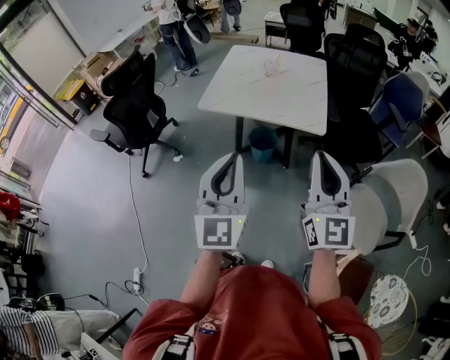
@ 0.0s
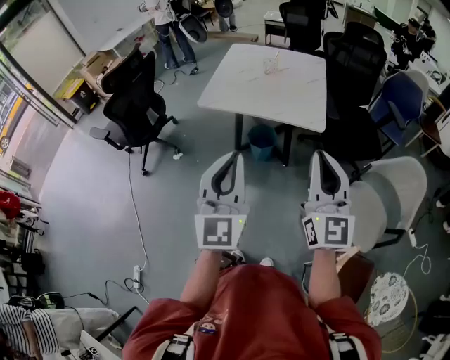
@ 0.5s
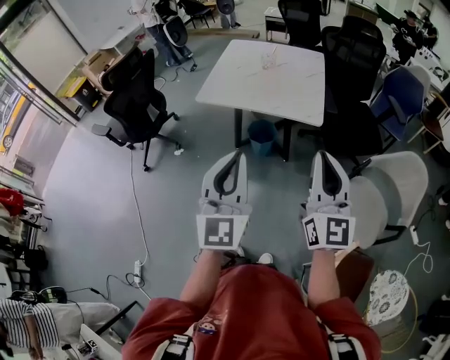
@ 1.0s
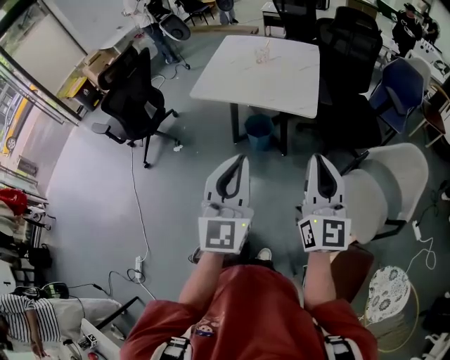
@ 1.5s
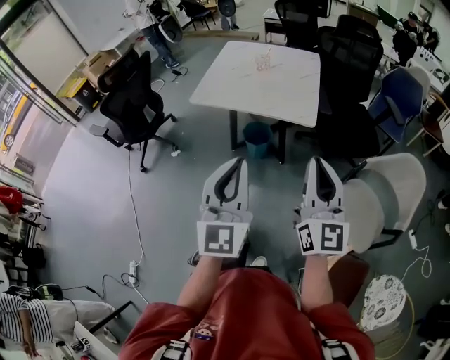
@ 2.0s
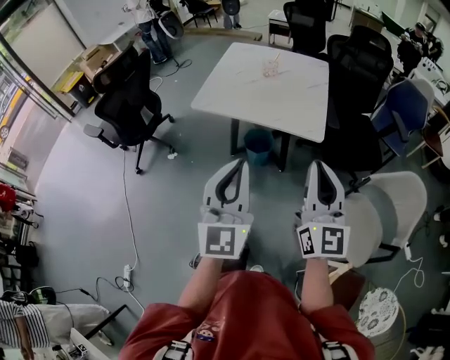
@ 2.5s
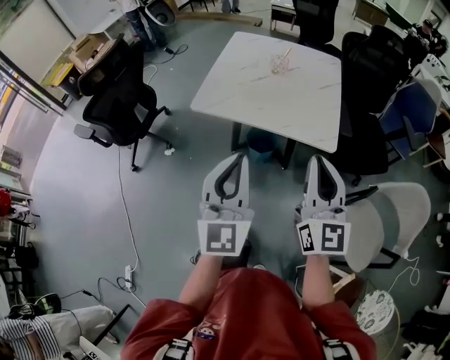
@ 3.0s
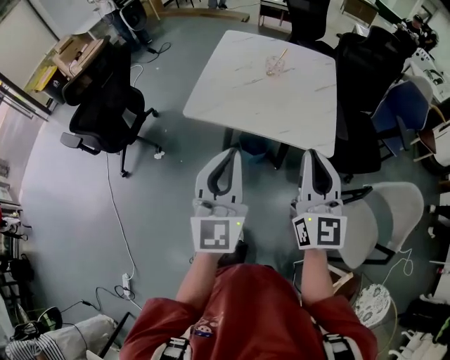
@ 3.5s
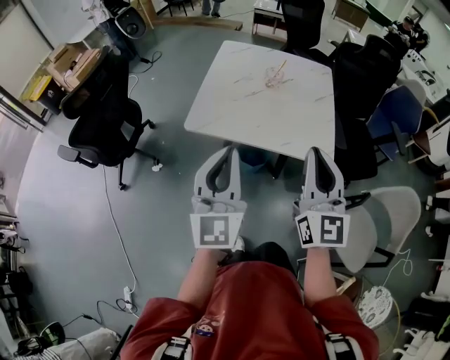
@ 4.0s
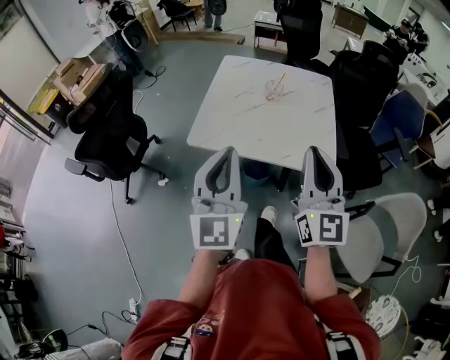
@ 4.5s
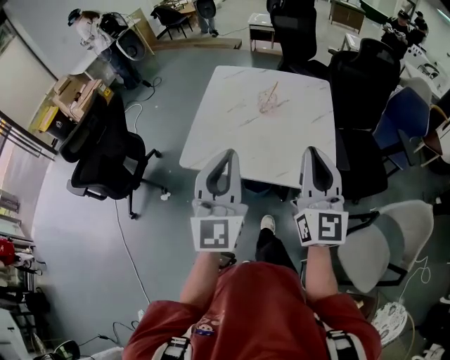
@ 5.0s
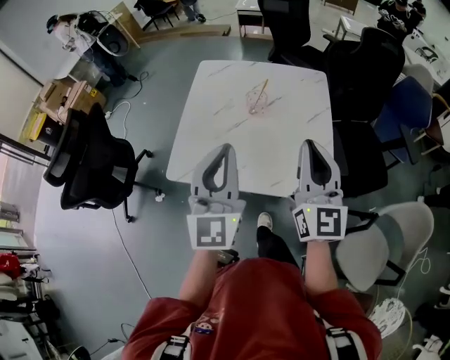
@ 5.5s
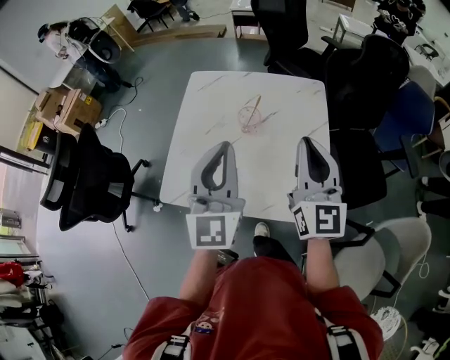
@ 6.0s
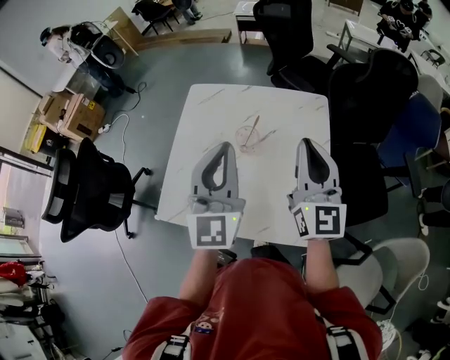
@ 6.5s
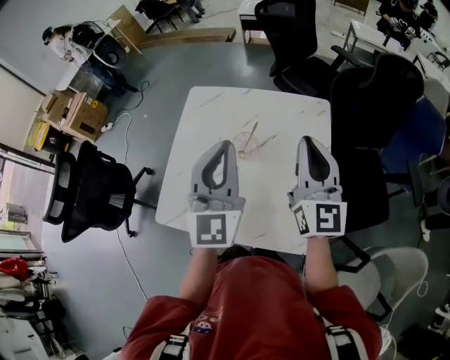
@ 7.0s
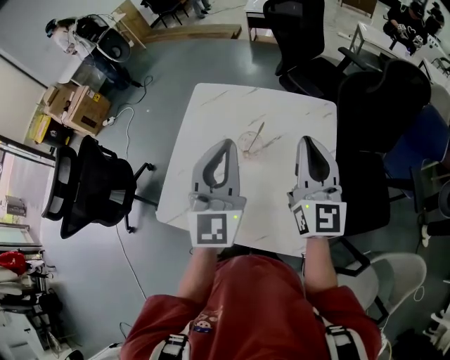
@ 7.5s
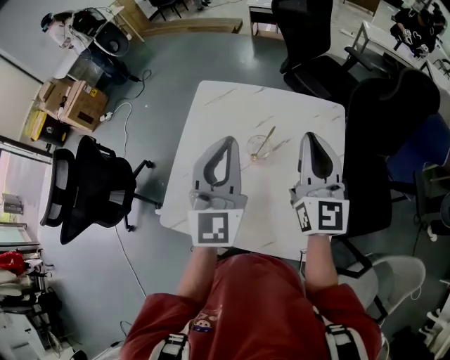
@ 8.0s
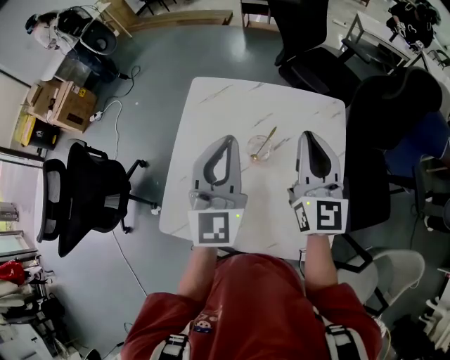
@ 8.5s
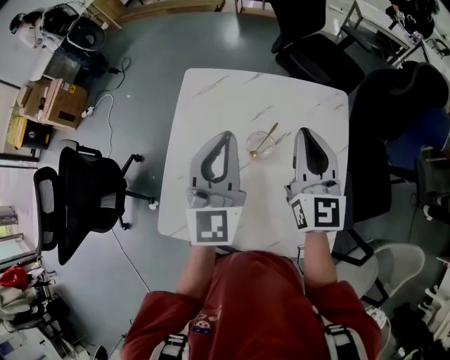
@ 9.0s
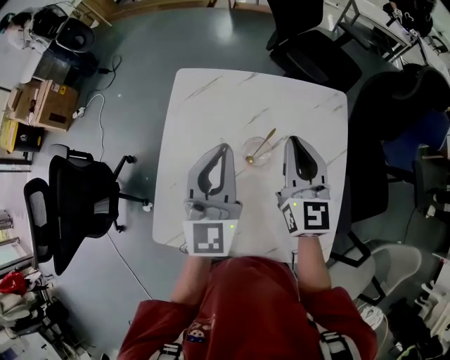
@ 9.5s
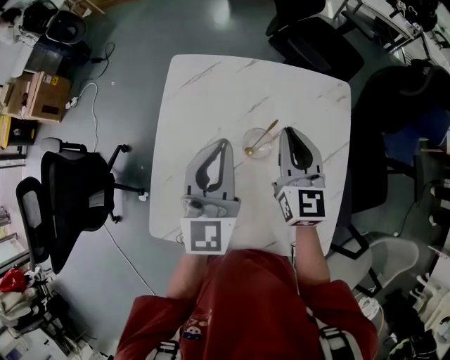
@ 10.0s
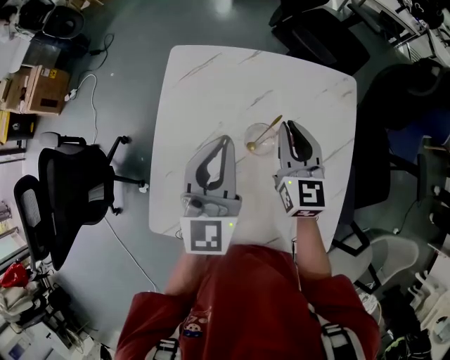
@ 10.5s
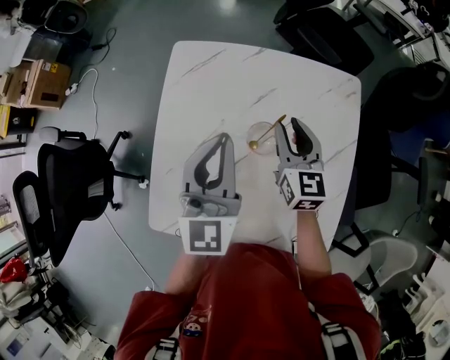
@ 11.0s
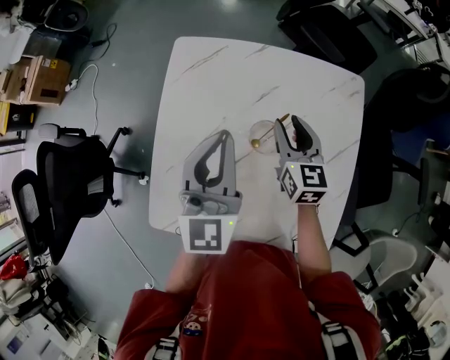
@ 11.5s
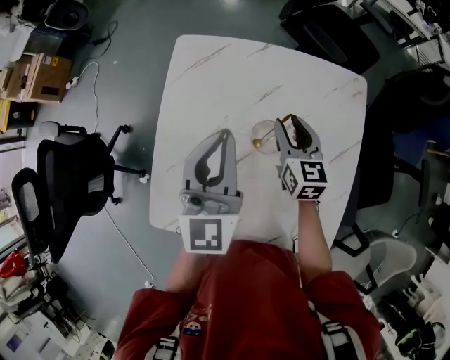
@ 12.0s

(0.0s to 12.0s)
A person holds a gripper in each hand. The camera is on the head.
0.0s - 2.0s: The grippers both shift to the right by about 10 cm.
2.0s - 4.0s: Both grippers move forward and to the left, about 35 cm.
4.0s - 6.0s: Both grippers travel together forward, approximately 30 cm.
6.0s - 8.0s: The two grippers go about 15 cm forward.
8.0s - 10.0s: The grippers both shift downward and forward by roughly 15 cm.
10.0s - 12.0s: The right gripper shifts approximately 10 cm downward, and opens its fingers.

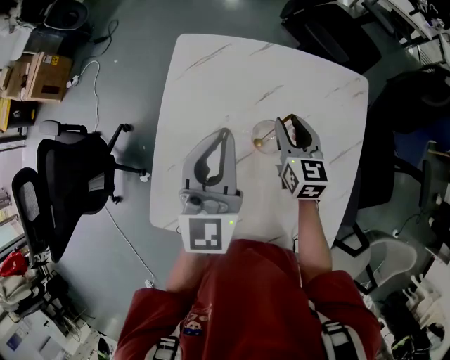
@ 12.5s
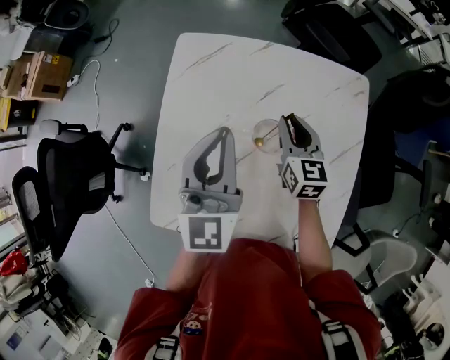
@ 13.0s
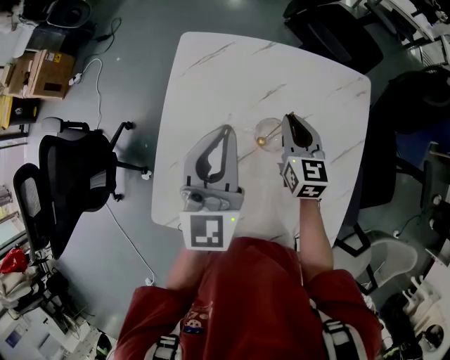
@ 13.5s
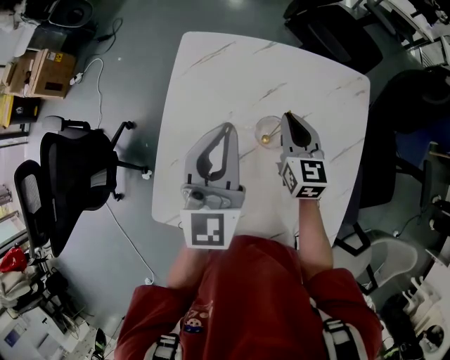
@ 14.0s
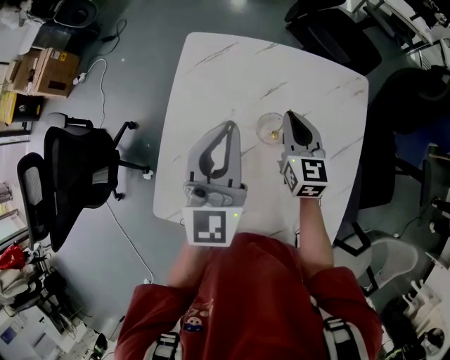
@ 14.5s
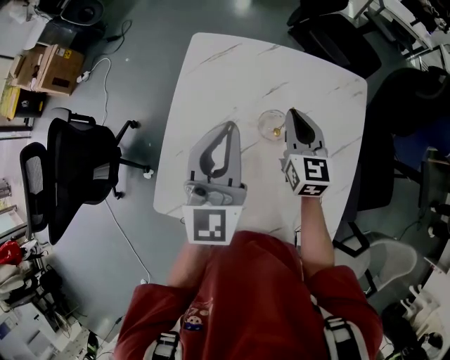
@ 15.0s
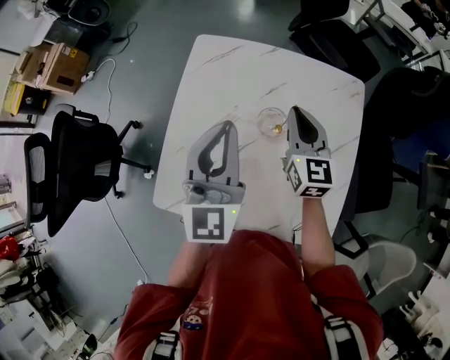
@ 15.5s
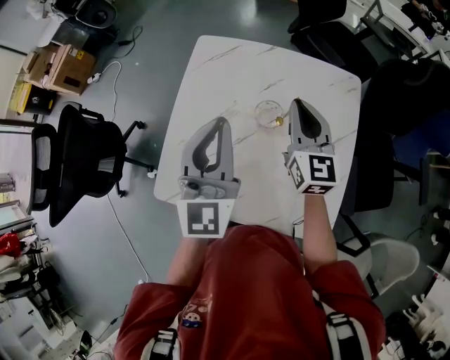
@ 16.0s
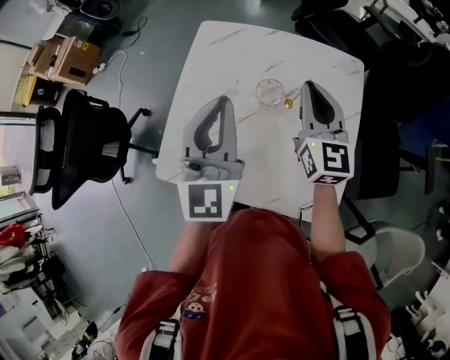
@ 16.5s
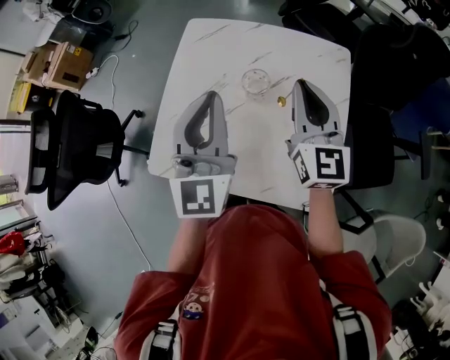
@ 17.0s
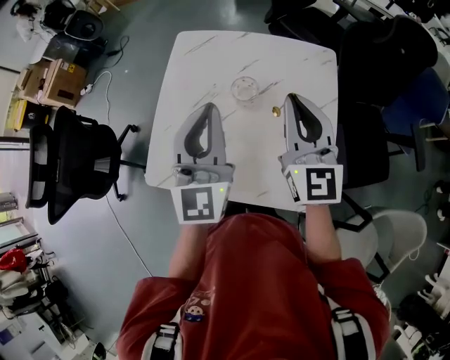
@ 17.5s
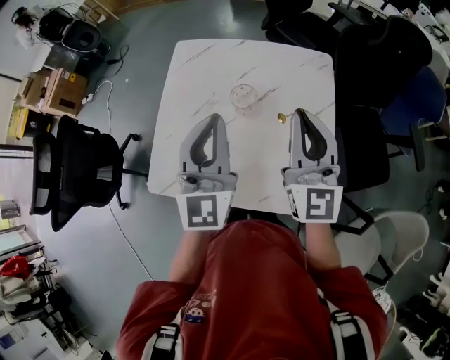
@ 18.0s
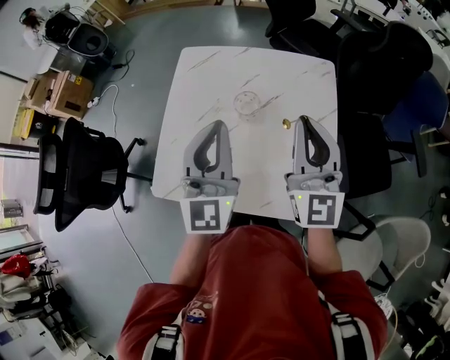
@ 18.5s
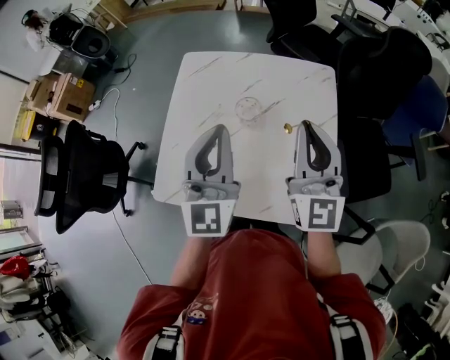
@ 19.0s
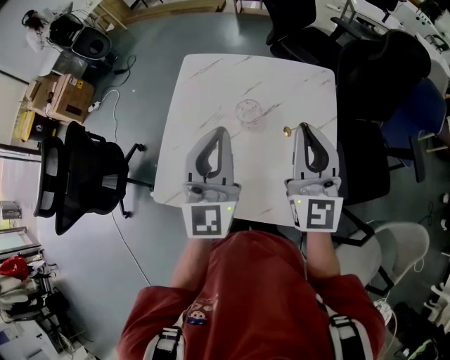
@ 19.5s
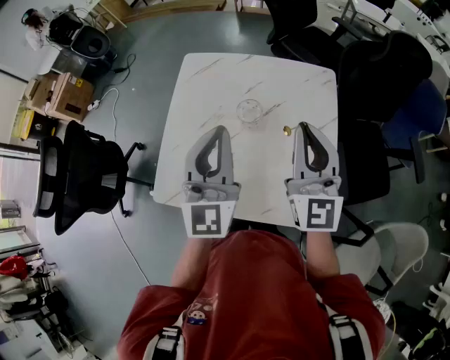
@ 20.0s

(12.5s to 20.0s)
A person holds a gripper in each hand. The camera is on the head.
12.5s - 14.5s: The right gripper closes.
14.5s - 16.5s: The left gripper travels backward and upward by approximately 10 cm; the right gripper goes approximately 15 cm upward and backward.
16.5s - 18.0s: The left gripper moves some 5 cm; the right gripper shifts roughly 15 cm backward and upward.
18.0s - 20.0s: The two grippers keep their place.

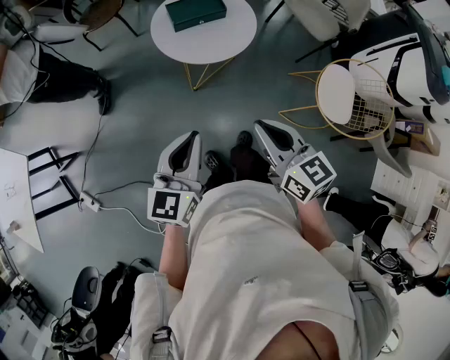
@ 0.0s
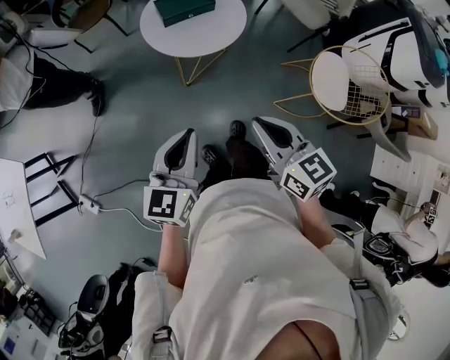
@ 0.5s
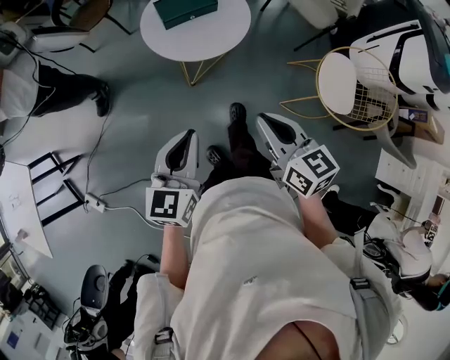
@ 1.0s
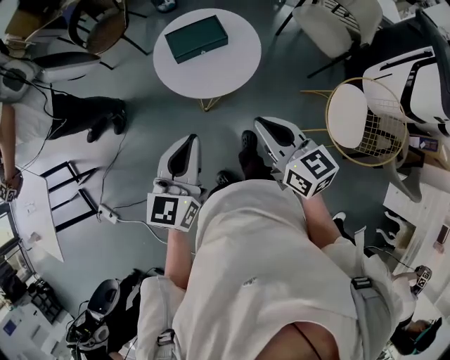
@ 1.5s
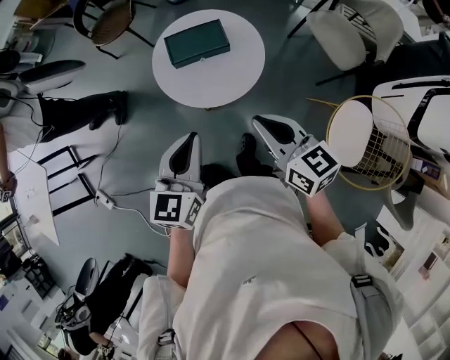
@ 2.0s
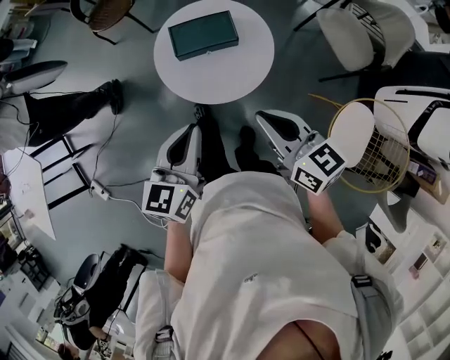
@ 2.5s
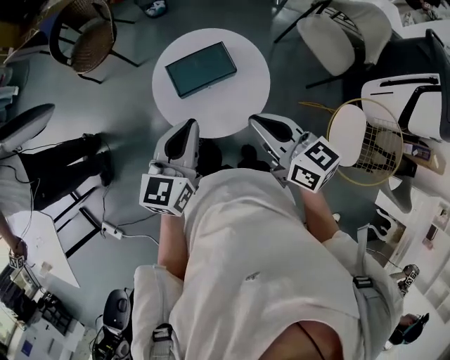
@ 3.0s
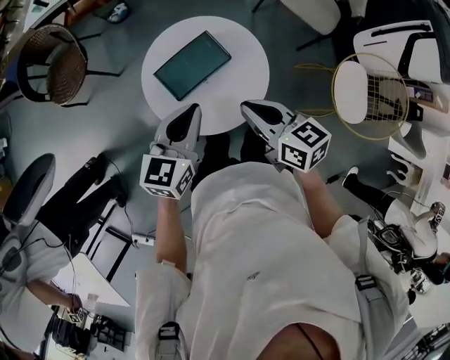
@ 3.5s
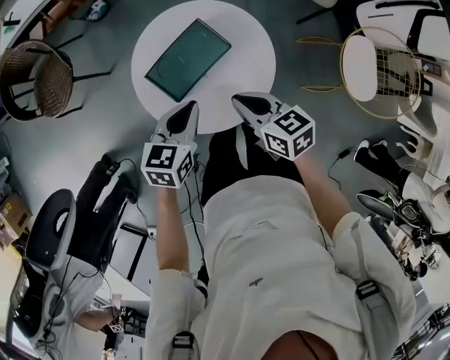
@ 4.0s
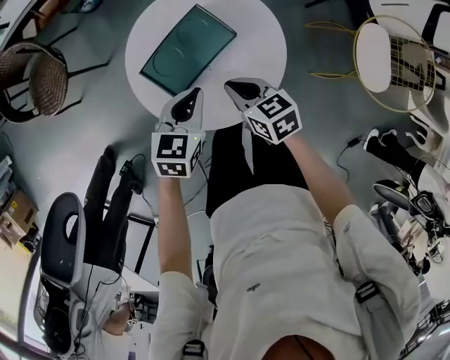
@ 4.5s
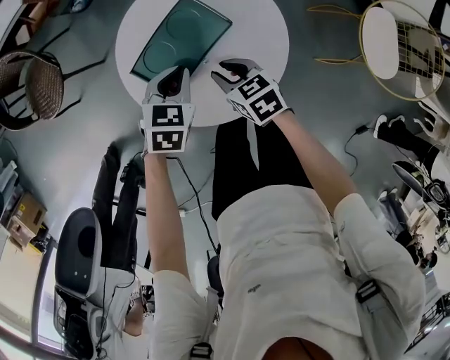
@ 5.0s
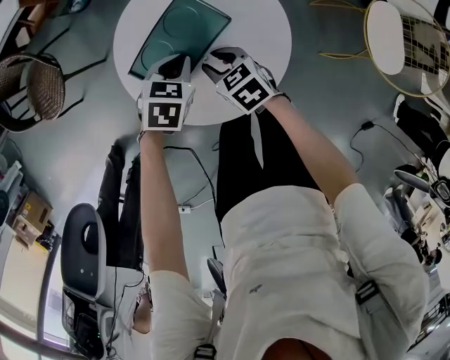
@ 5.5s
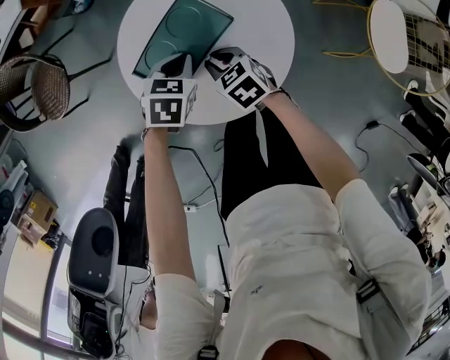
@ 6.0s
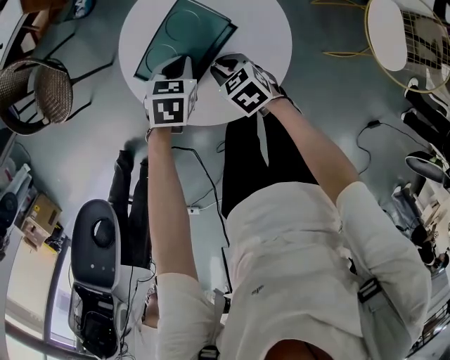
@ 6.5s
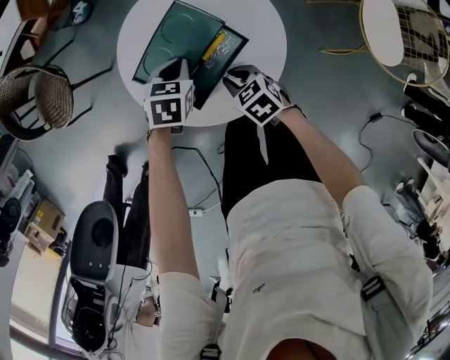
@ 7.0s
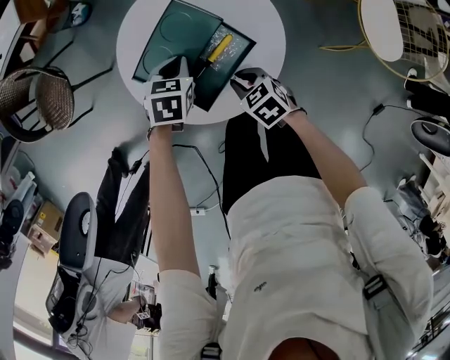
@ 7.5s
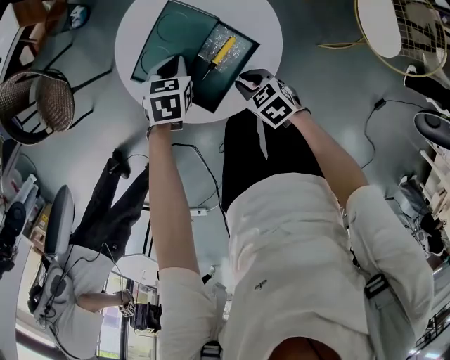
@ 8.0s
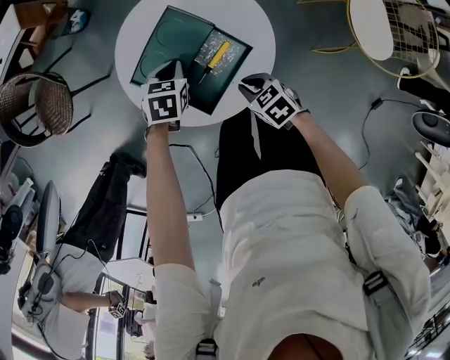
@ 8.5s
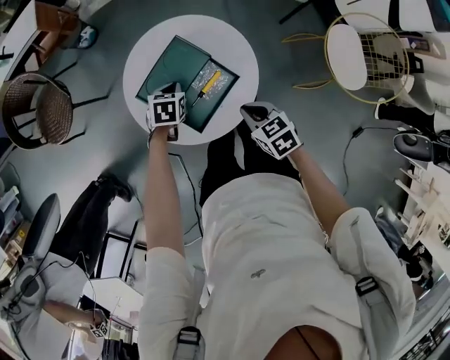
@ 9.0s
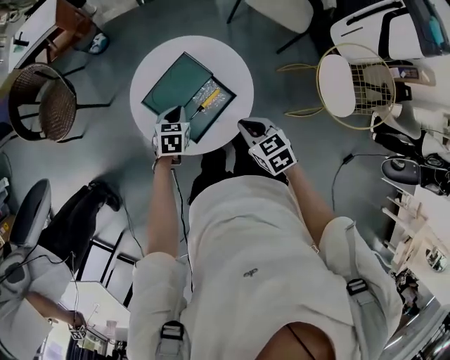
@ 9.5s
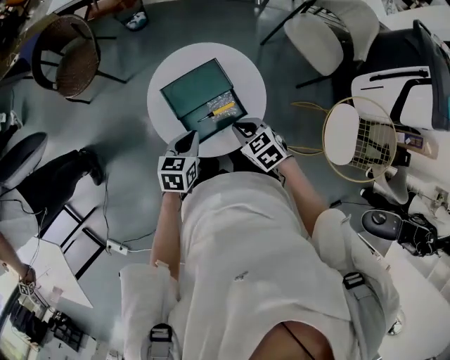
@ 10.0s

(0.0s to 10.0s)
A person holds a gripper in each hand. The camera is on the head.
0.0s - 2.0s: Both grippers travel together forward and to the right, approximately 25 cm.
2.0s - 4.0s: The left gripper ends up roughly 35 cm from where it was, and rotates about 50 degrees. Meanwhile the right gripper moves some 35 cm, and turns by roughly 30 degrees.
4.0s - 6.0s: The left gripper shifts approximately 15 cm downward and forward, and turns by roughly 30 degrees, while the right gripper travels downward by some 20 cm.
6.0s - 8.0s: The right gripper moves backward and to the right, about 10 cm.
8.0s - 10.0s: The left gripper heads upward and backward, covering roughly 20 cm, and changes its angle by some 30 degrees, while the right gripper heads upward, covering approximately 15 cm, and rotates about 30 degrees.
